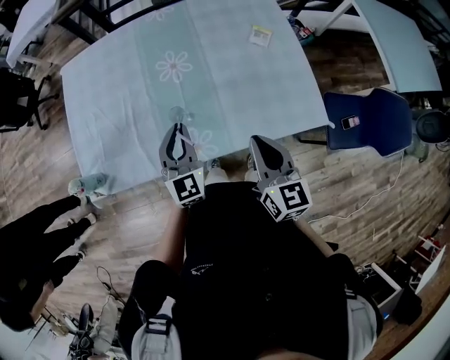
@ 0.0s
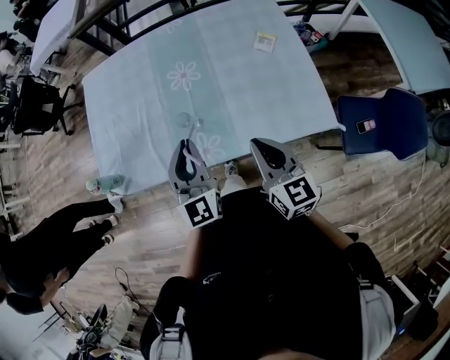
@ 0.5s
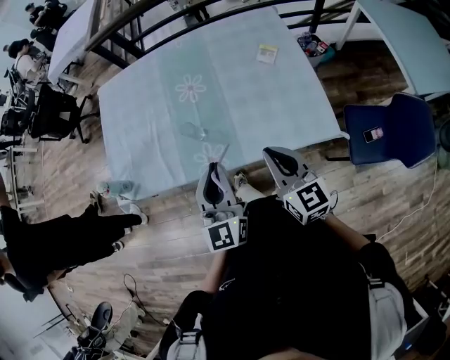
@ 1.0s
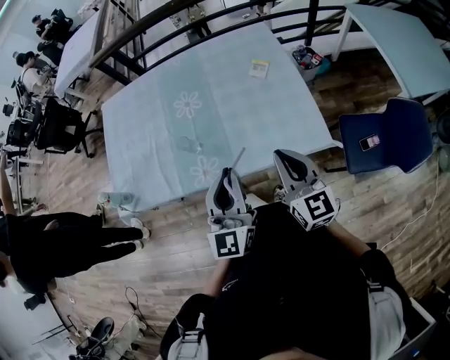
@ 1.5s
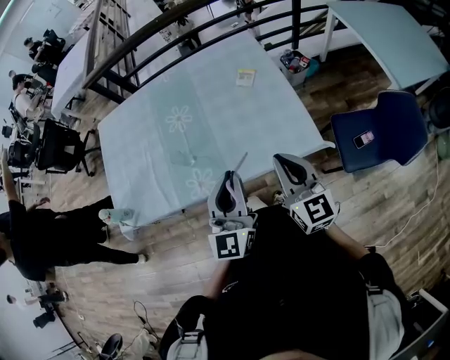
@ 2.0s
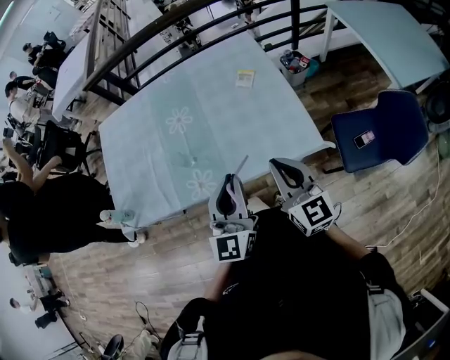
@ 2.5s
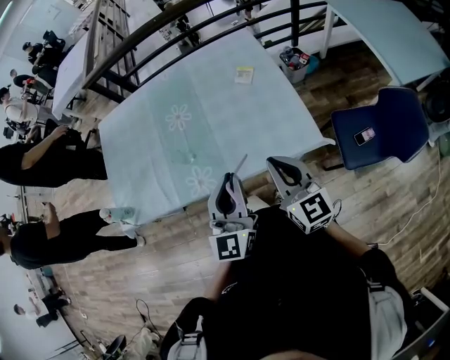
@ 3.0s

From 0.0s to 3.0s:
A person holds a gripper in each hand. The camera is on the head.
From 0.0s to 1.5s: The left gripper heads backward, to the right and upward, covering some 25 cm, and changes its angle by roughly 20 degrees. Meanwhile the right gripper travels to the right and backward by approximately 15 cm.
From 1.5s to 3.0s: The grippers stay close to where they were, moving slightly.

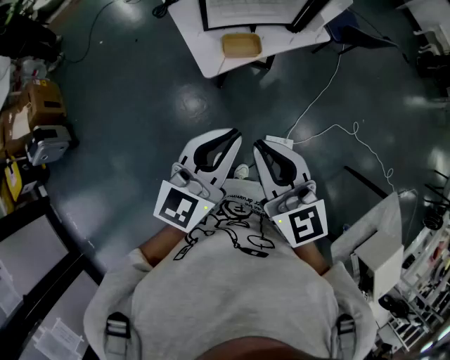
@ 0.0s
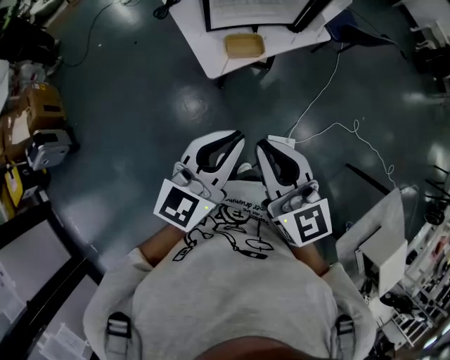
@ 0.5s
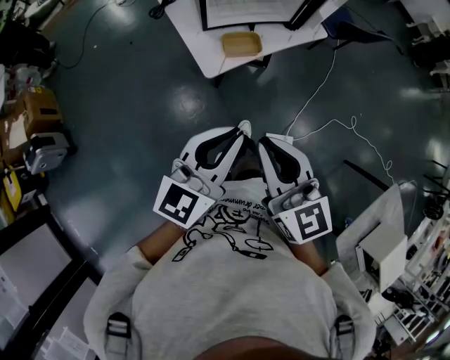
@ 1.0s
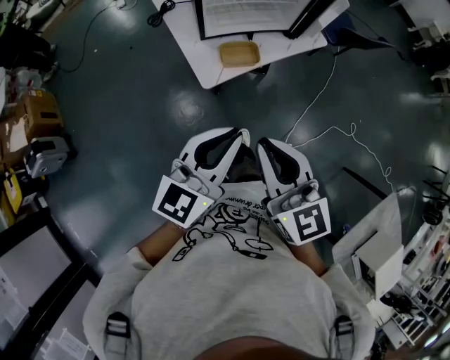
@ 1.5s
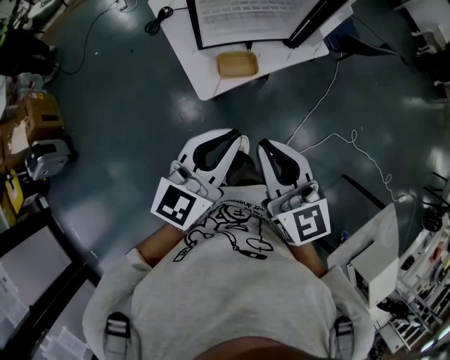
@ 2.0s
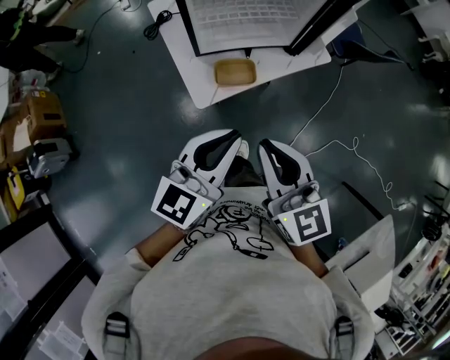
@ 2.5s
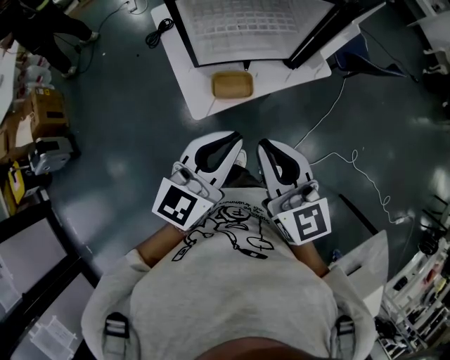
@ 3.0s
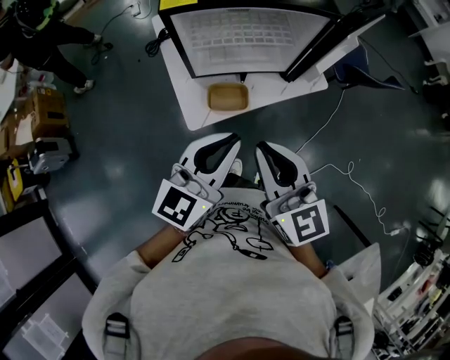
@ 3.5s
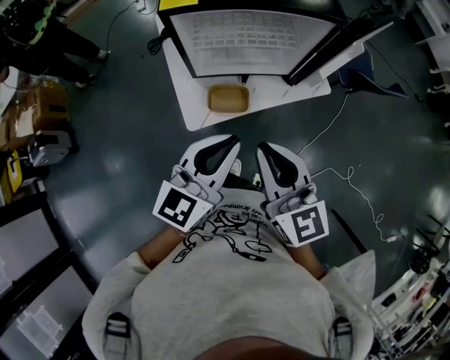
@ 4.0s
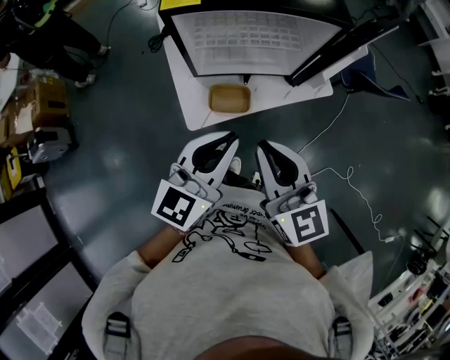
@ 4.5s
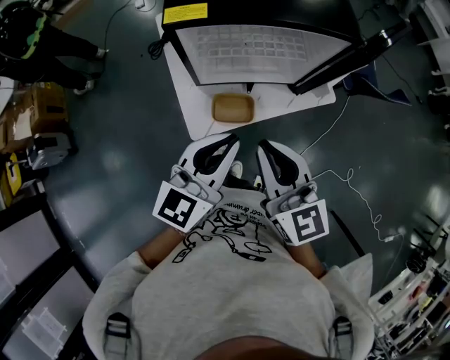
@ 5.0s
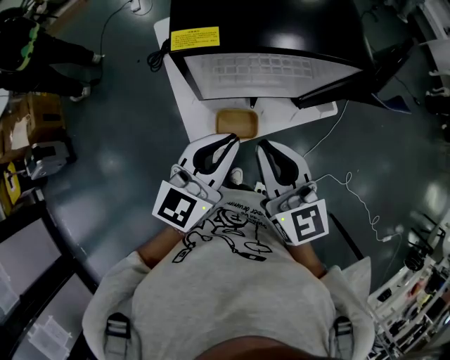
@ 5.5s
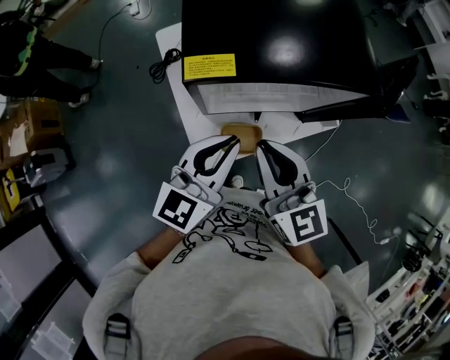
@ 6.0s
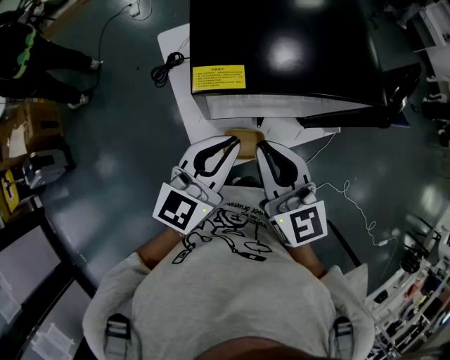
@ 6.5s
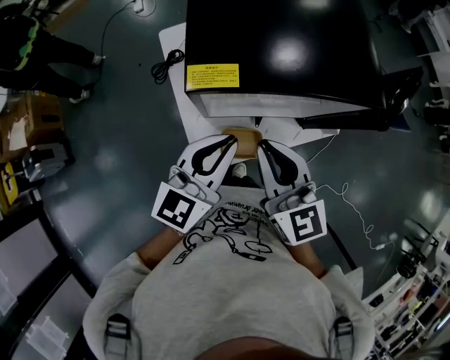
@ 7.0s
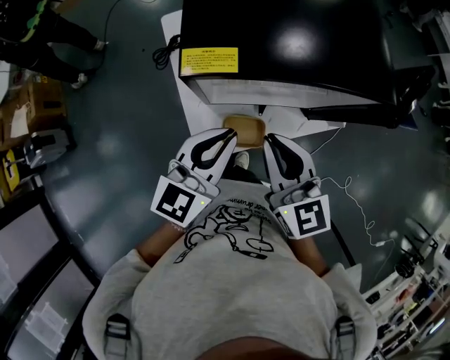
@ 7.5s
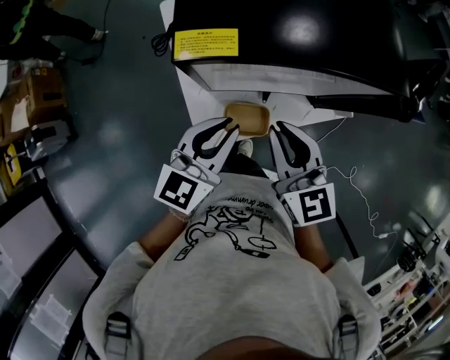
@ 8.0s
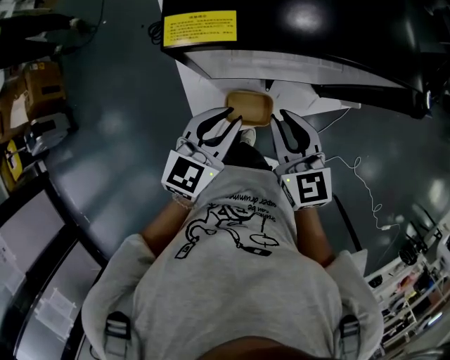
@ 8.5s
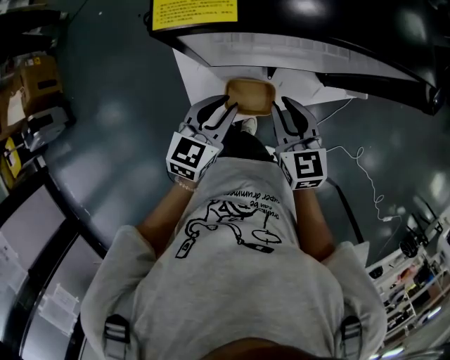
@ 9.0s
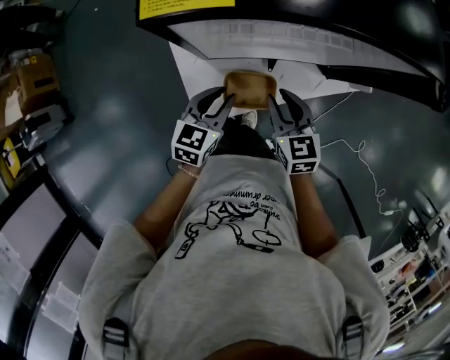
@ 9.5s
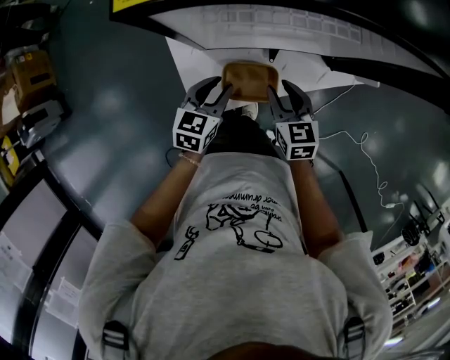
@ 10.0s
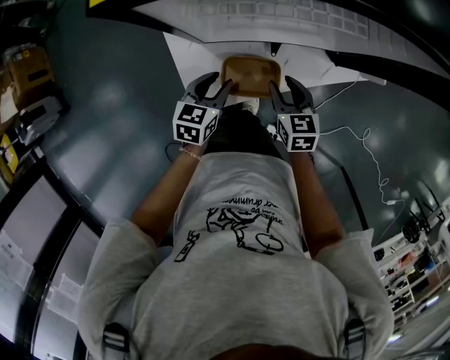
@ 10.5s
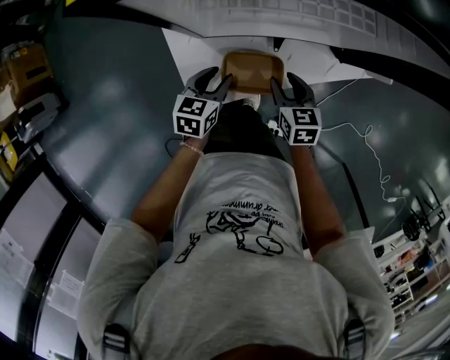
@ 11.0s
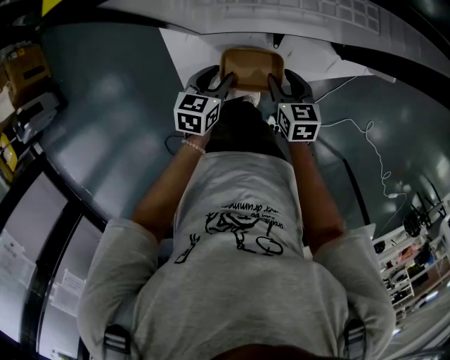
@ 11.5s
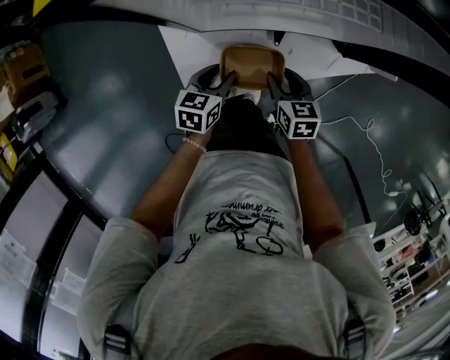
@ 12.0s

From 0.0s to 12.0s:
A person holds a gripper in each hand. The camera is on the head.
From 0.0s to 2.0s: Both grippers move forward, about 10 cm.
From 2.0s to 4.0s: Both grippers travel together forward and to the right, roughly 15 cm.
From 4.0s to 6.0s: The grippers both shift forward and to the left by about 20 cm.
From 6.0s to 8.0s: The grippers both shift downward by about 5 cm.
From 8.0s to 10.0s: Both grippers travel together downward, roughly 25 cm. The left gripper rotates roughly 20 degrees. Meanwhile the right gripper turns by some 20 degrees, and opens up.
From 10.0s to 12.0s: Both grippers move downward, some 10 cm.

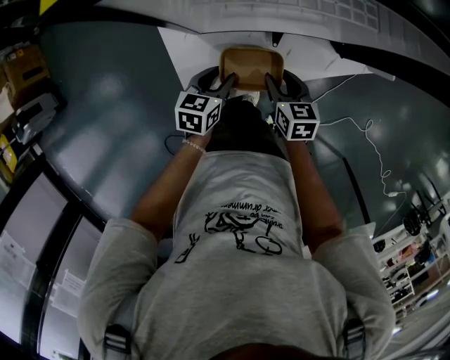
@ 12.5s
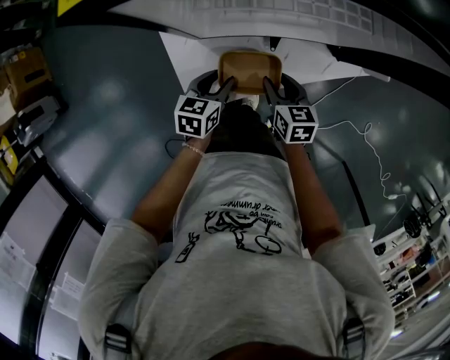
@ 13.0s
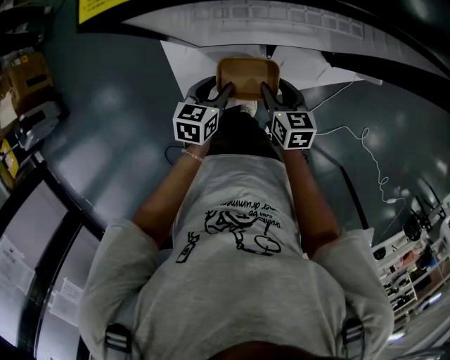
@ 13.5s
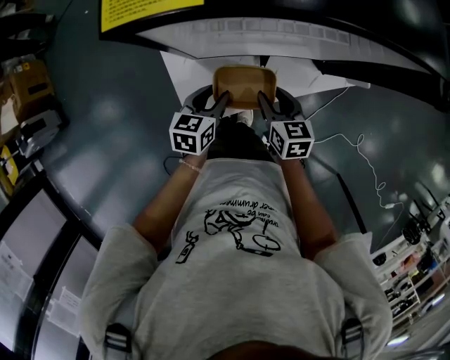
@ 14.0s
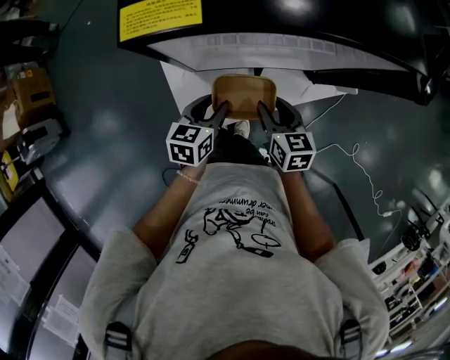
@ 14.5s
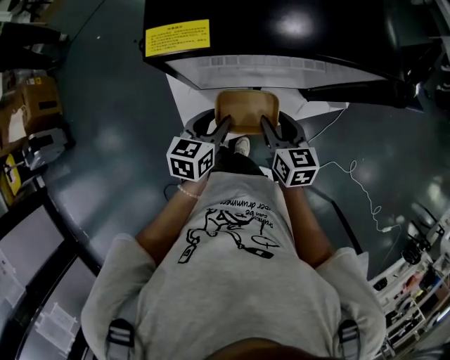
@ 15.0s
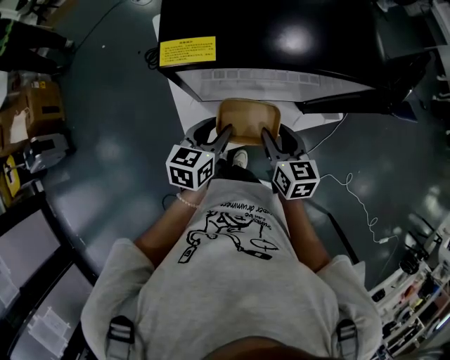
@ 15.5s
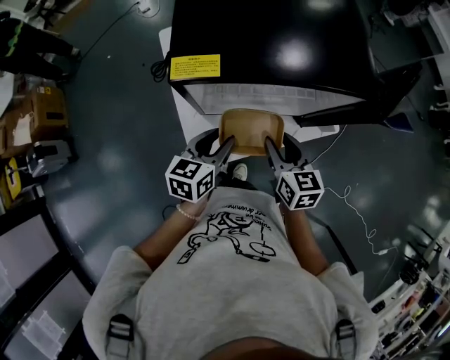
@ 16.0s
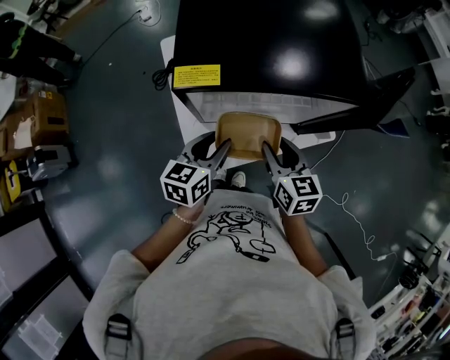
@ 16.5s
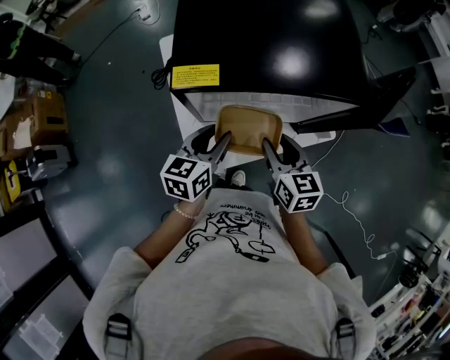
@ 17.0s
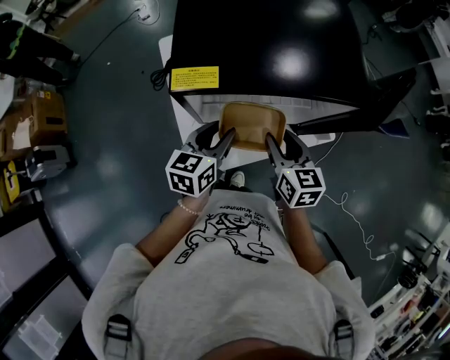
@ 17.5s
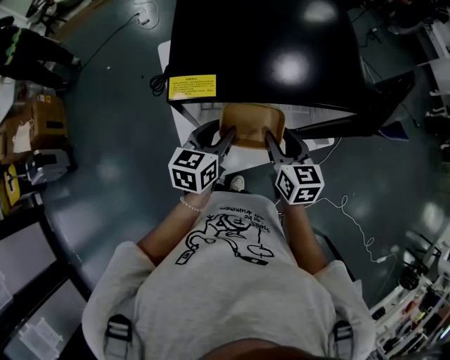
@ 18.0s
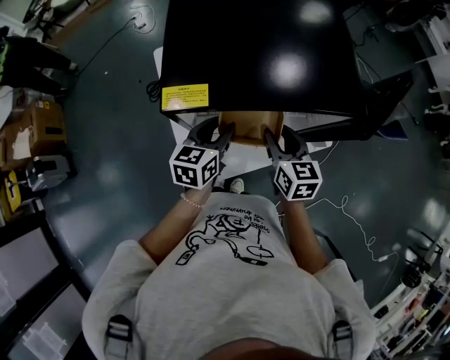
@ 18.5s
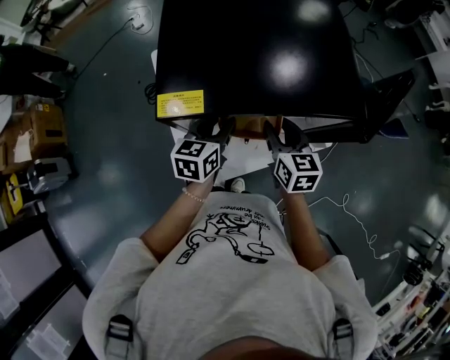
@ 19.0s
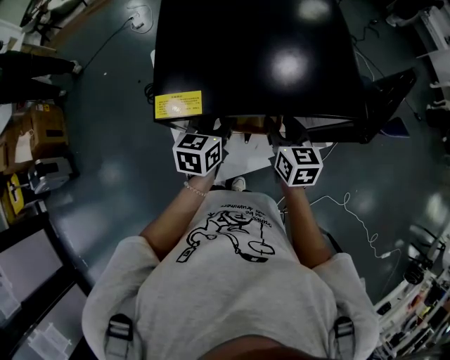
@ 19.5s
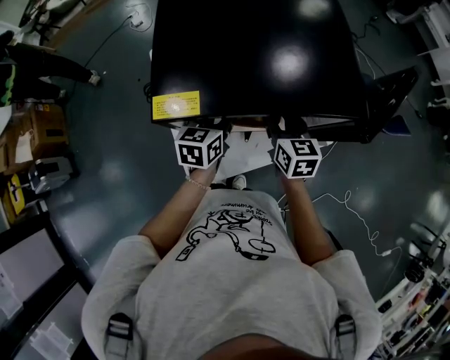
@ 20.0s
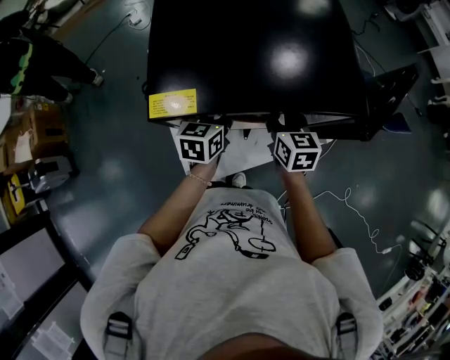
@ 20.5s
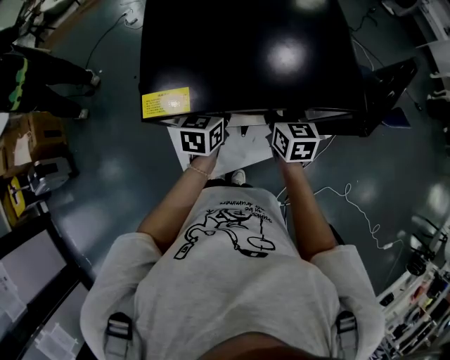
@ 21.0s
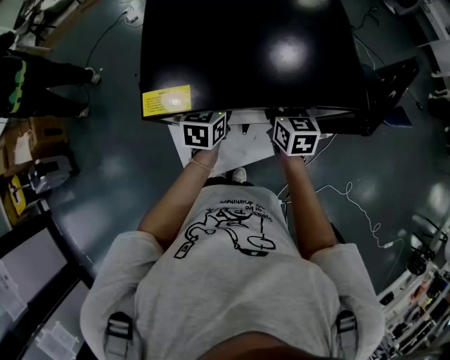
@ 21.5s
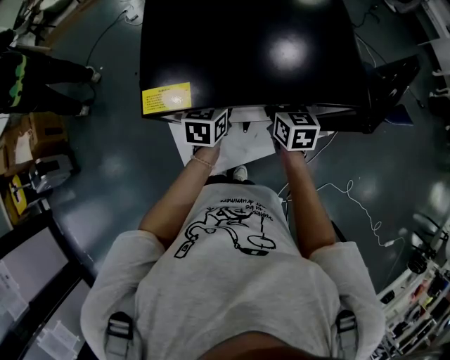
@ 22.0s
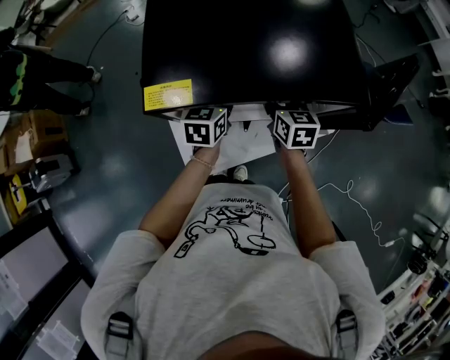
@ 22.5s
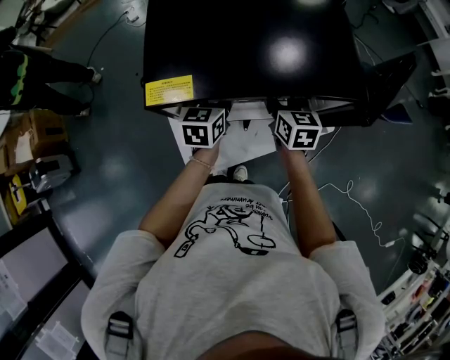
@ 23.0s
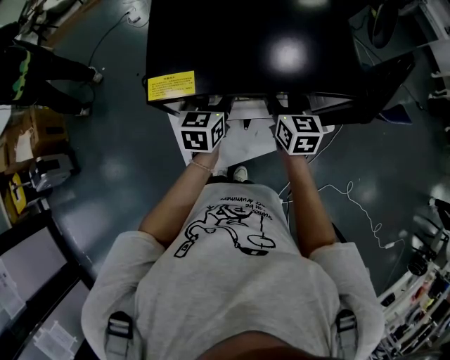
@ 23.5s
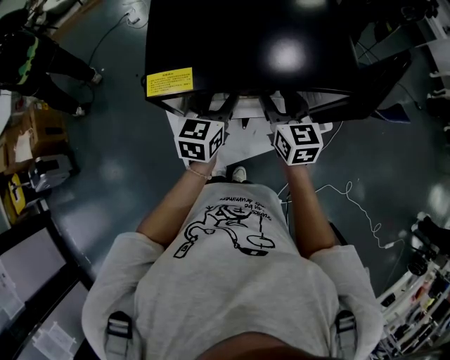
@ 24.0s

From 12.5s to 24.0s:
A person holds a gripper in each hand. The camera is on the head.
From 12.5s to 14.5s: The grippers both shift upward by about 10 cm.
From 14.5s to 16.5s: Both grippers move upward, about 15 cm.
From 16.5s to 18.5s: The grippers both shift forward by about 10 cm.
From 18.5s to 20.0s: Both grippers travel together forward, about 5 cm.
From 20.0s to 22.0s: The grippers move only a little.
From 22.0s to 24.0s: The grippers both shift upward by roughly 5 cm.
